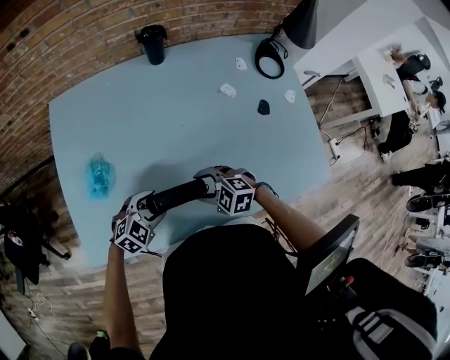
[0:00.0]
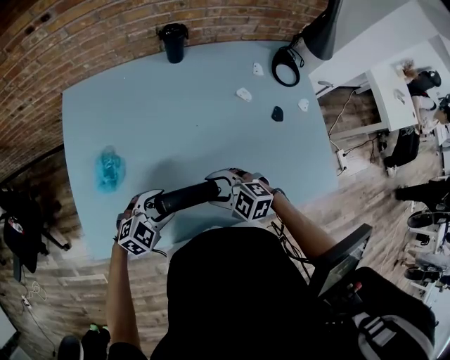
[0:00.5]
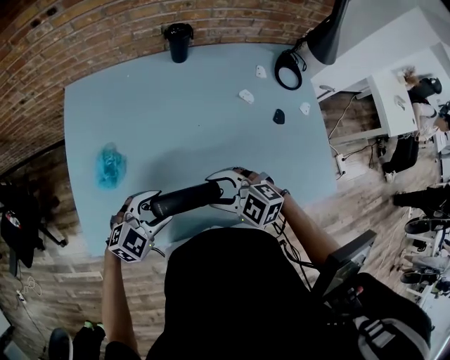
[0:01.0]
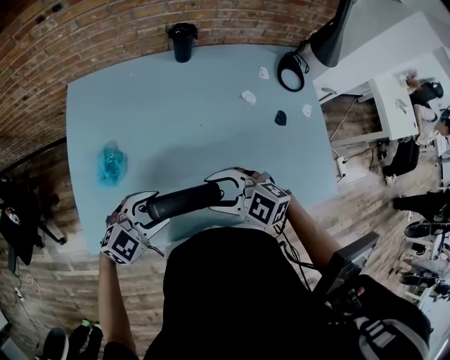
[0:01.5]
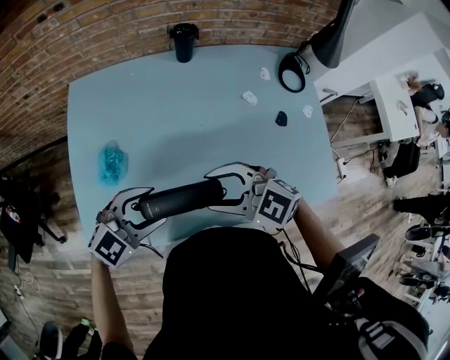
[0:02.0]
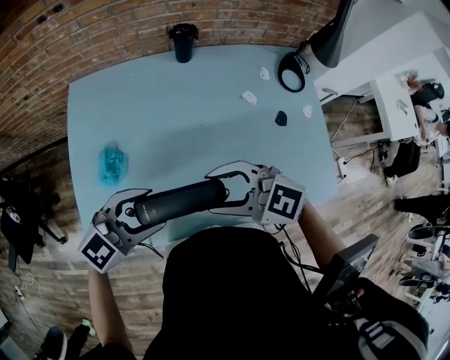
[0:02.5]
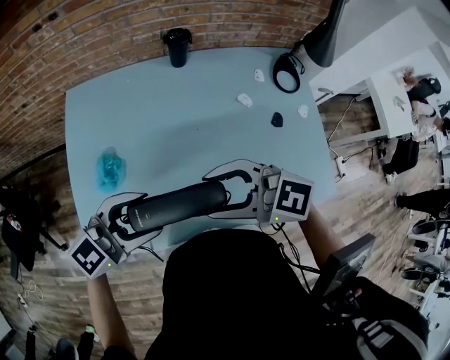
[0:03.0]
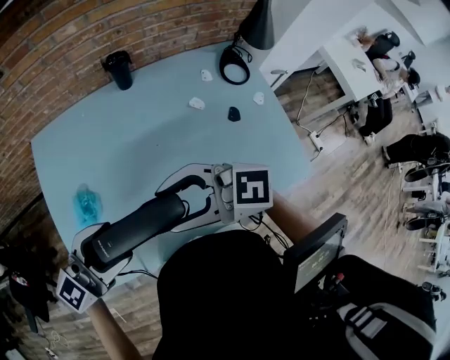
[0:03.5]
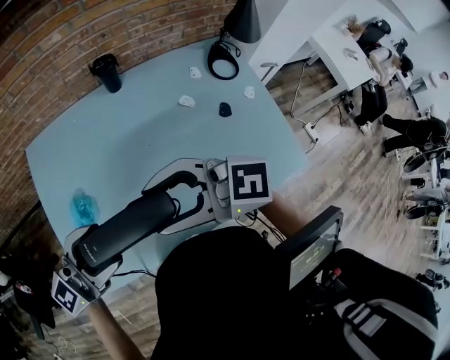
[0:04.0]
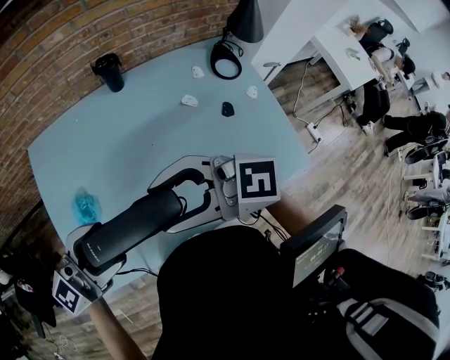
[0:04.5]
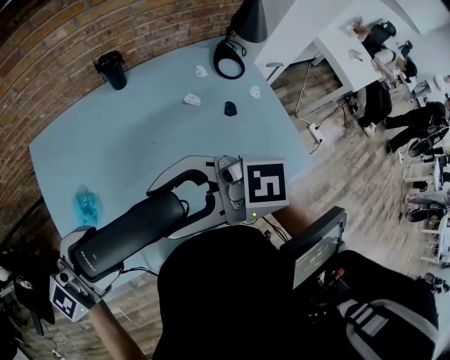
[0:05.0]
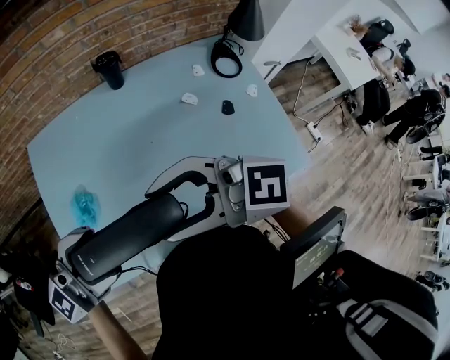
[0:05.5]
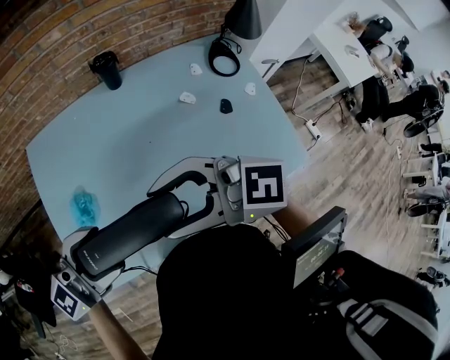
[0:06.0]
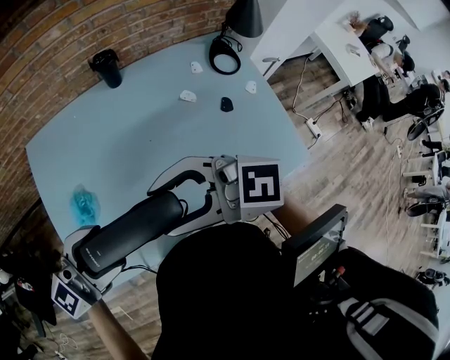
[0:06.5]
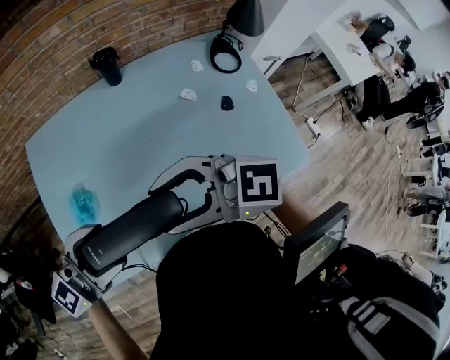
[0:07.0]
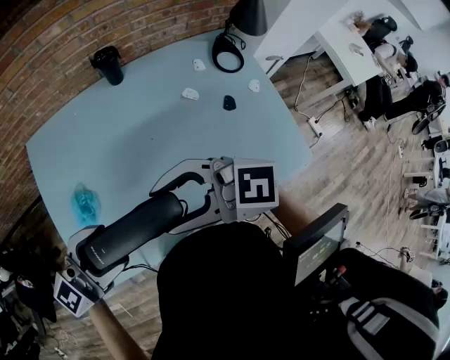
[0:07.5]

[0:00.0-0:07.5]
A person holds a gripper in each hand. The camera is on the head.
0:00.0 to 0:02.0: Both grippers travel together upward, roughly 20 cm. The left gripper turns by some 20 degrees, while the right gripper rotates approximately 20 degrees.
0:02.0 to 0:04.0: Both grippers travel together upward, approximately 15 cm. The left gripper angles its fingers upward, by roughly 40 degrees; the right gripper tilts its fingers roughly 30 degrees upward.
0:04.0 to 0:05.5: The left gripper heads upward, covering some 5 cm.
0:05.5 to 0:07.5: The left gripper travels downward by about 5 cm.

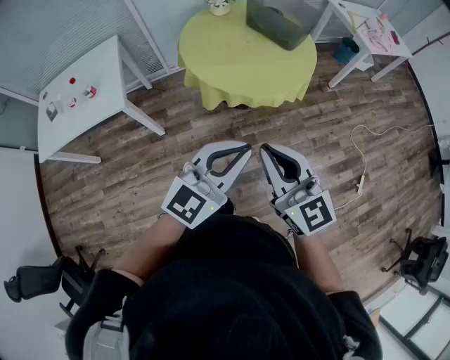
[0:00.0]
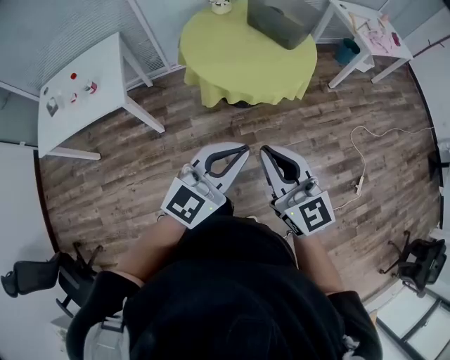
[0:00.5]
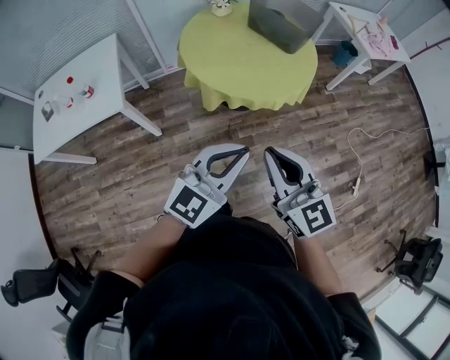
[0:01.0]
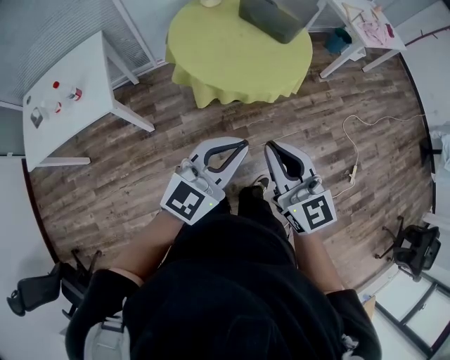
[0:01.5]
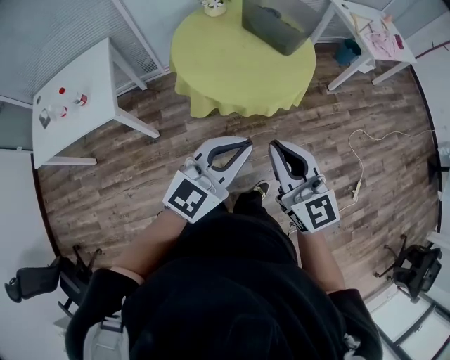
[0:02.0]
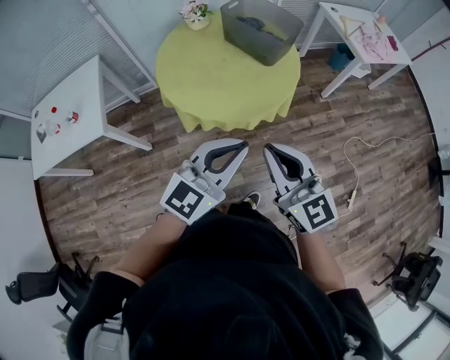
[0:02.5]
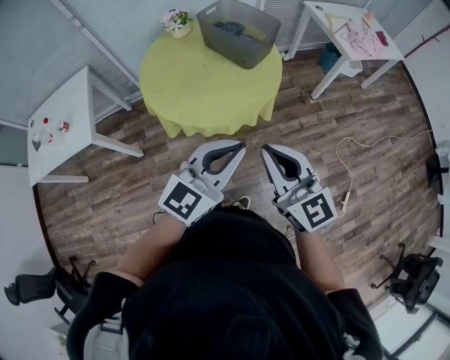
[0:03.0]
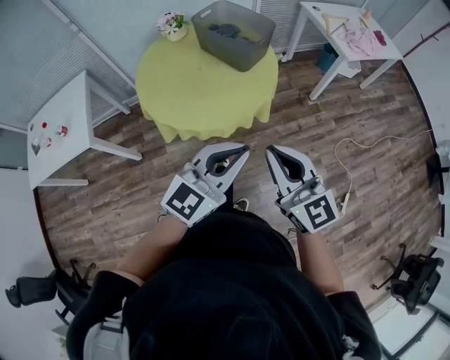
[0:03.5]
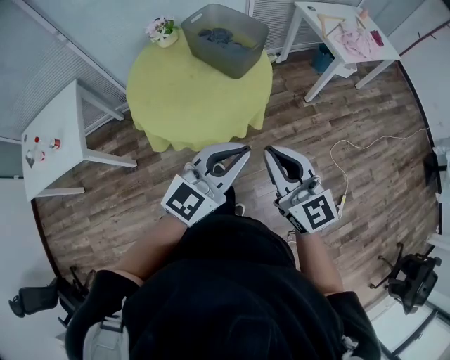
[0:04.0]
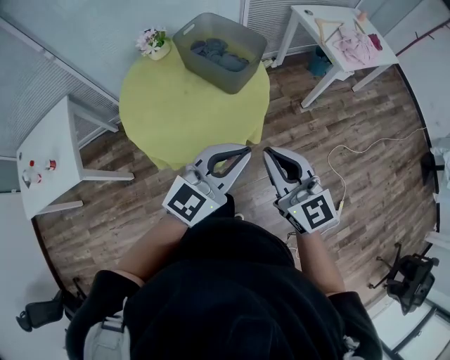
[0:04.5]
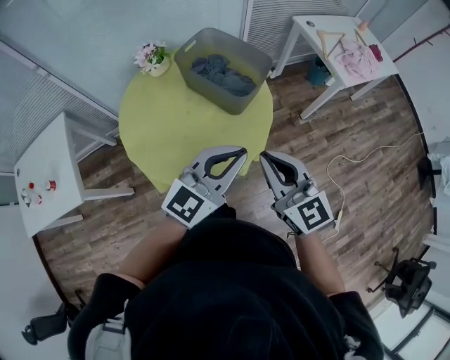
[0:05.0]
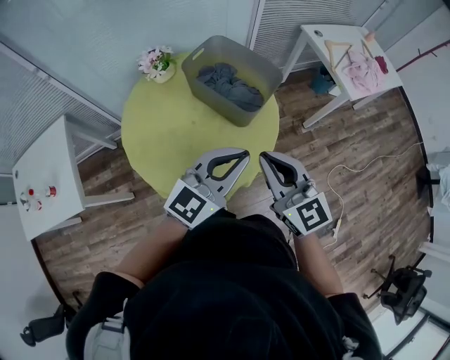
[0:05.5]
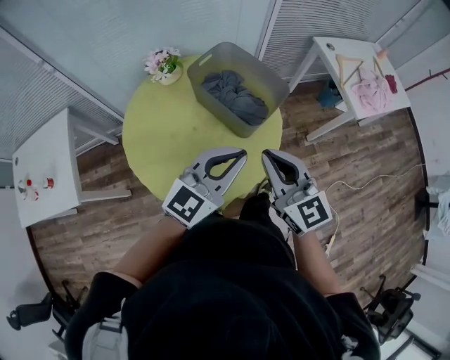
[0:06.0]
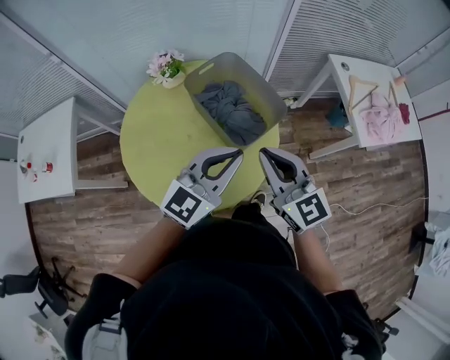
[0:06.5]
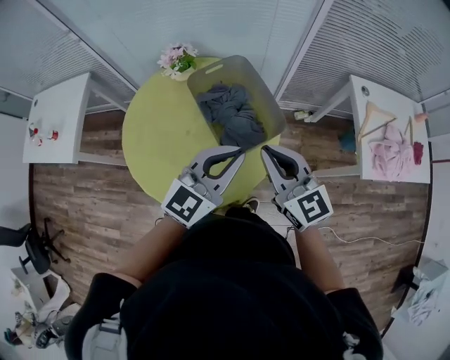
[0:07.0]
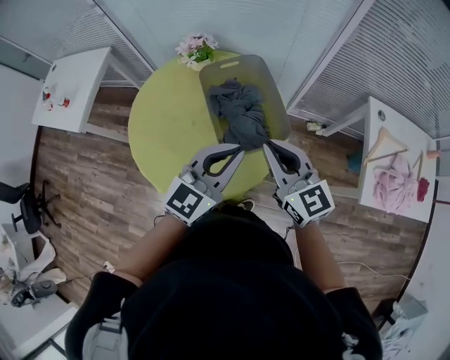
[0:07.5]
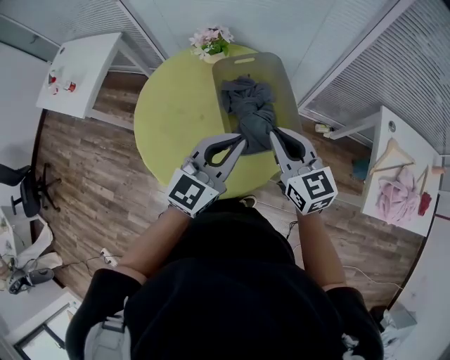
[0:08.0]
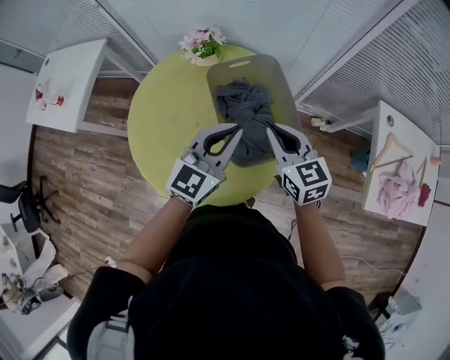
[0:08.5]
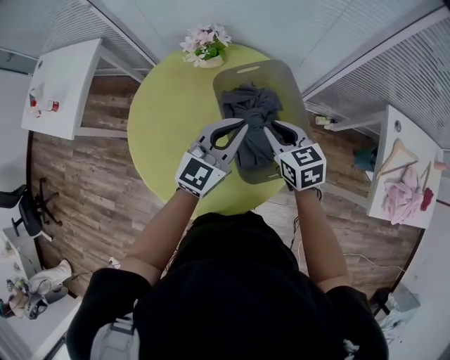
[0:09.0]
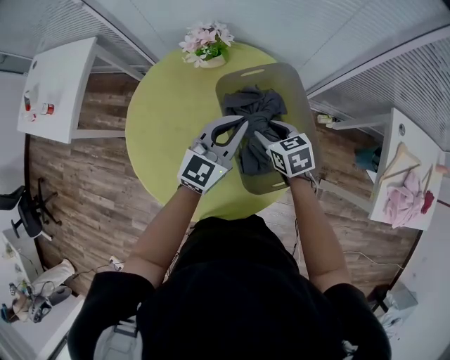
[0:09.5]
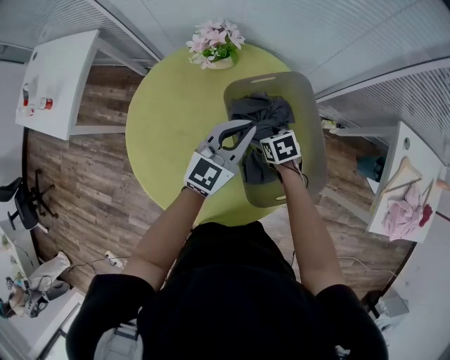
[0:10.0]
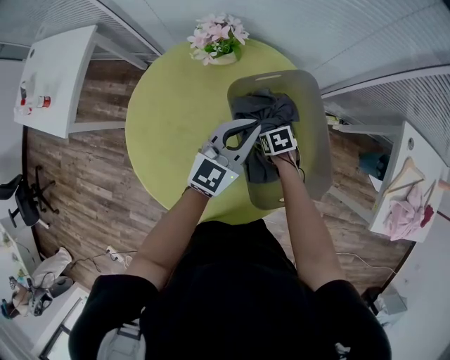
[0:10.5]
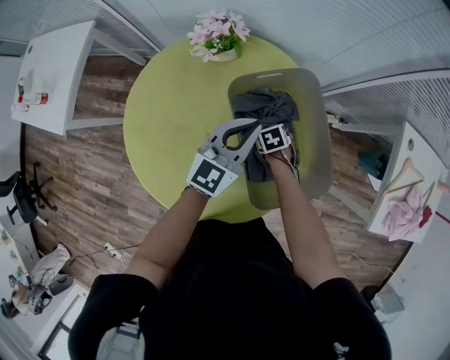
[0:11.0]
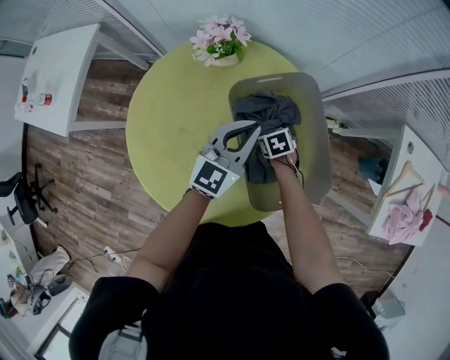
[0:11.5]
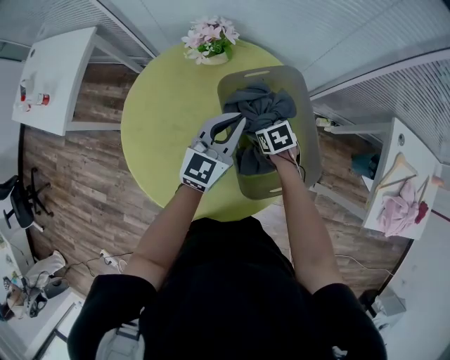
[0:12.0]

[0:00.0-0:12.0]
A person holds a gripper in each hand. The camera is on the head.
0:00.0 to 0:02.0: The right gripper goes some 10 cm forward and to the right; the left gripper travels forward by some 10 cm.
0:02.0 to 0:04.0: Both grippers travel together to the right and forward, about 25 cm.
0:04.0 to 0:06.0: Both grippers travel together forward, about 30 cm.
0:06.0 to 0:08.0: The right gripper ends up about 25 cm from where it was, and rotates roughly 30 degrees; the left gripper shifts by about 20 cm, and changes its angle by roughly 40 degrees.
0:08.0 to 0:10.0: The left gripper travels forward and downward by roughly 25 cm; the right gripper moves downward and forward, approximately 35 cm, tips its fingers downward by approximately 50 degrees, and opens up.
0:10.0 to 0:12.0: The right gripper travels downward and back again, approximately 10 cm each way.

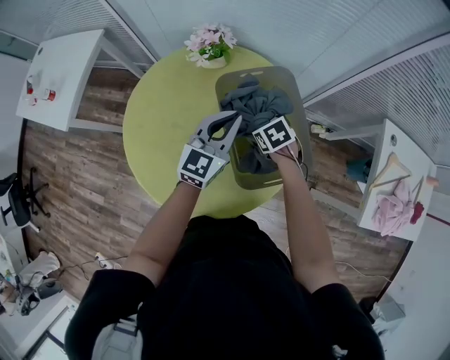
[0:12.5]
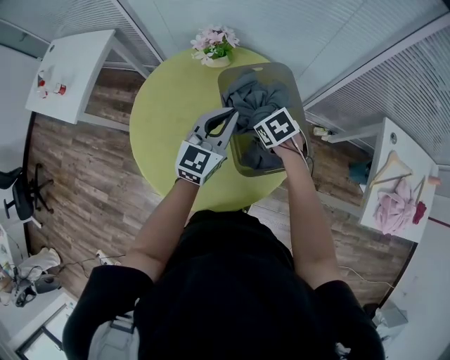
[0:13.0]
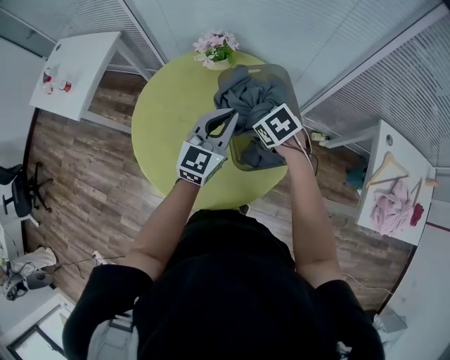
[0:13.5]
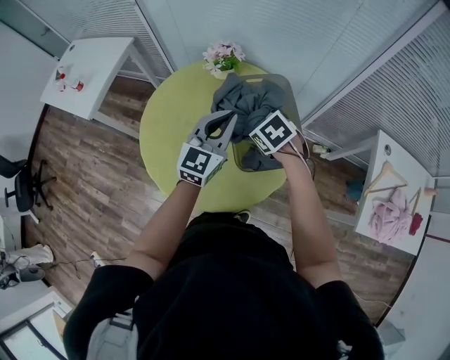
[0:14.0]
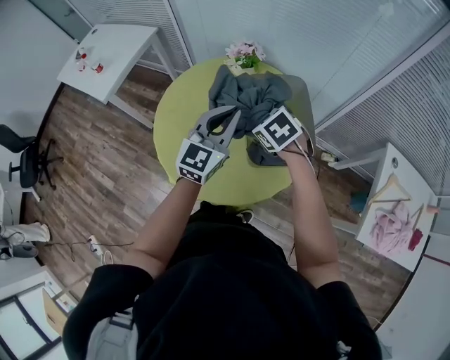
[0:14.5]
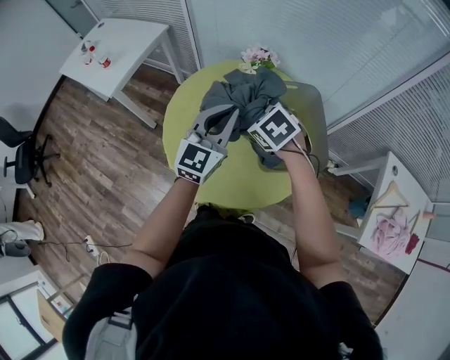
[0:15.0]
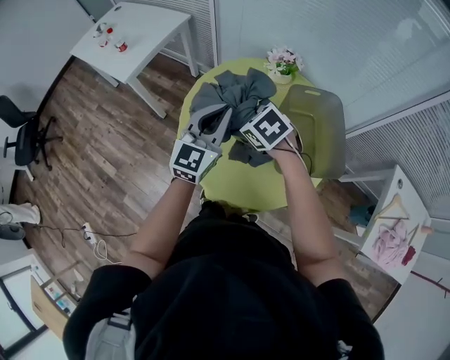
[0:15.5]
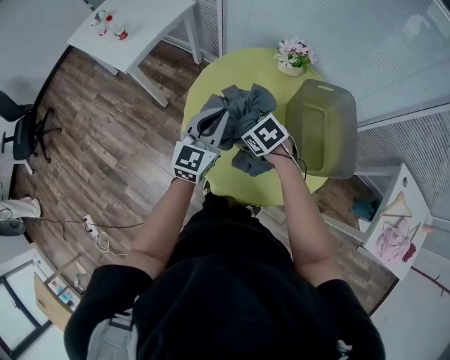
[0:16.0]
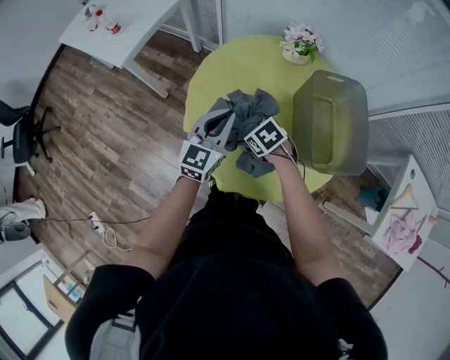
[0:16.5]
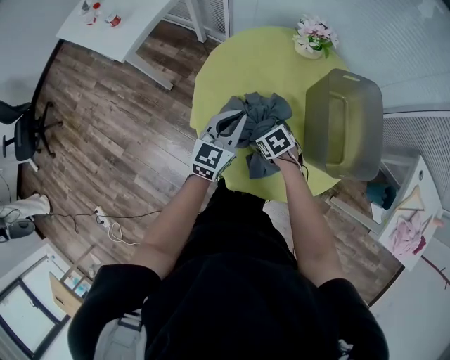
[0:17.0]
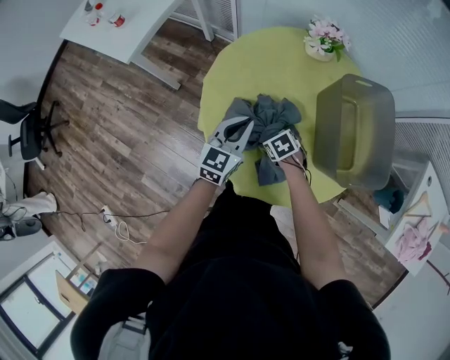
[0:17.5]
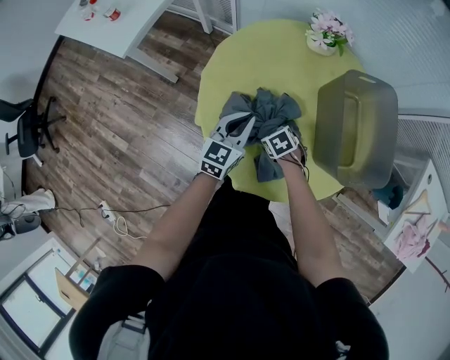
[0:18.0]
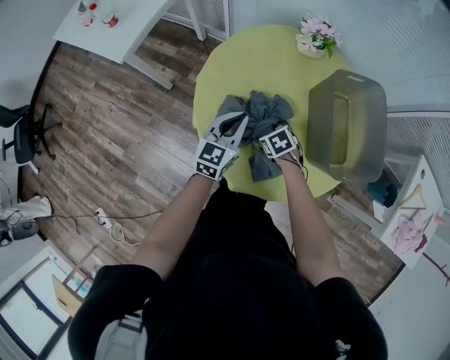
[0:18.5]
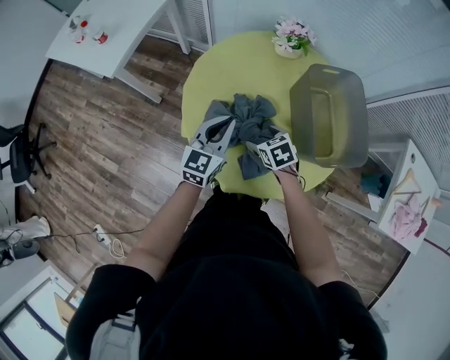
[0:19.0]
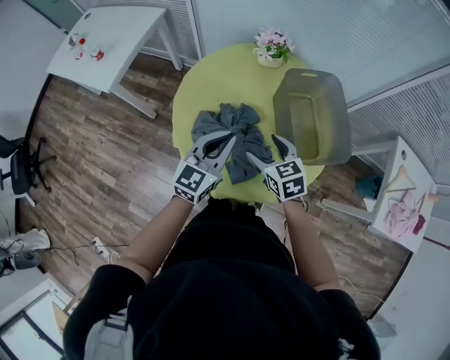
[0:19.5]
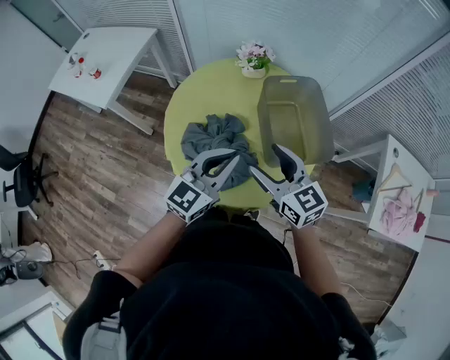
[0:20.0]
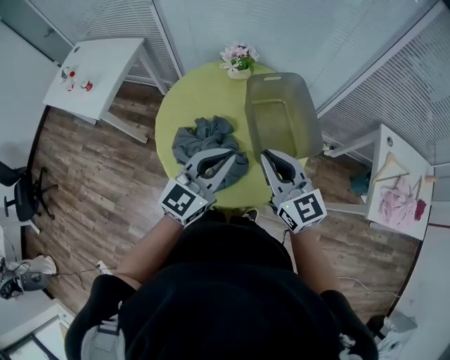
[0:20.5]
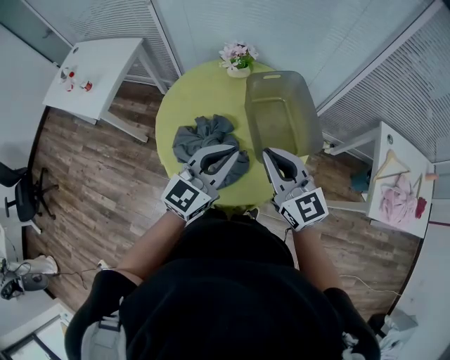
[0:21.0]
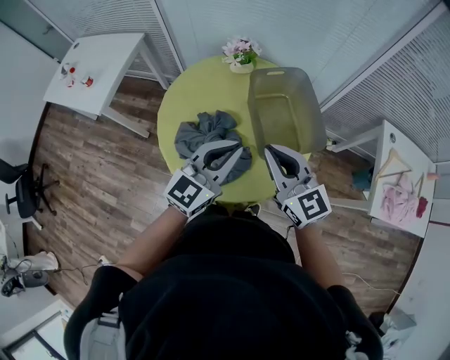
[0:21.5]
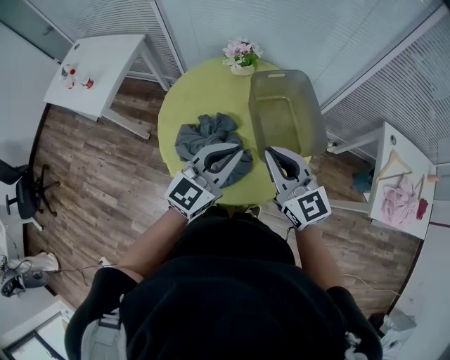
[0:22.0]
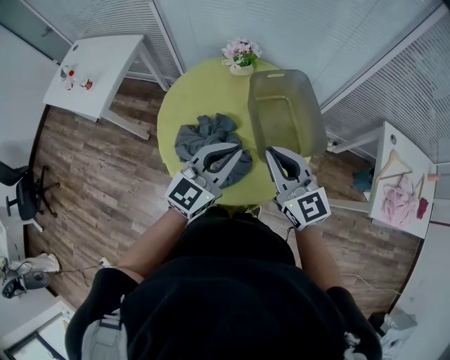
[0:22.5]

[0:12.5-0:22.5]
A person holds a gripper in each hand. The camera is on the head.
0:12.5 to 0:14.5: The right gripper moves upward and to the left, about 20 cm, and changes its angle by approximately 30 degrees; the left gripper travels upward, backward and to the left by about 15 cm.
0:14.5 to 0:16.5: The two grippers go approximately 25 cm to the left and downward.
0:16.5 to 0:18.5: The two grippers go roughly 10 cm downward.
0:18.5 to 0:20.5: The left gripper shifts approximately 20 cm upward, and changes its angle by some 30 degrees; the right gripper is displaced upward by approximately 40 cm, tilts its fingers approximately 60 degrees upward, and closes.
0:20.5 to 0:22.5: The grippers make only small movements.
